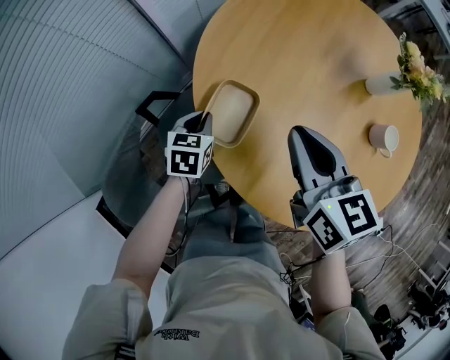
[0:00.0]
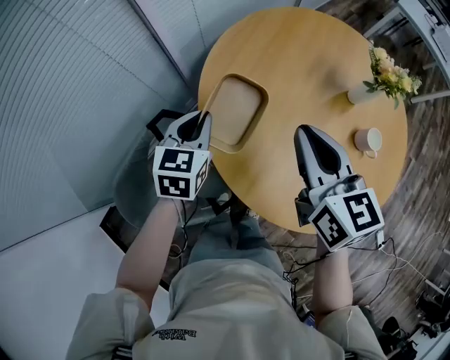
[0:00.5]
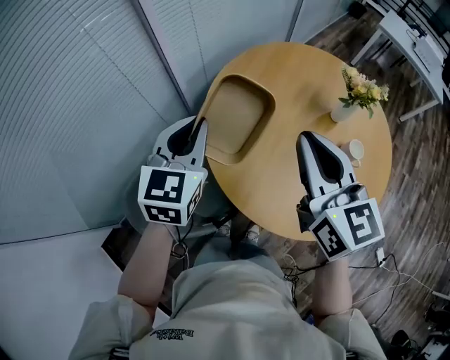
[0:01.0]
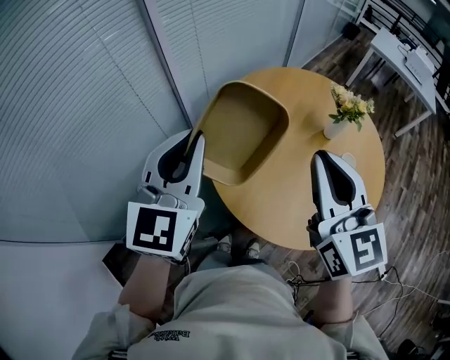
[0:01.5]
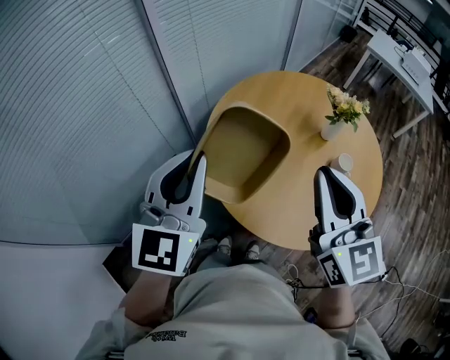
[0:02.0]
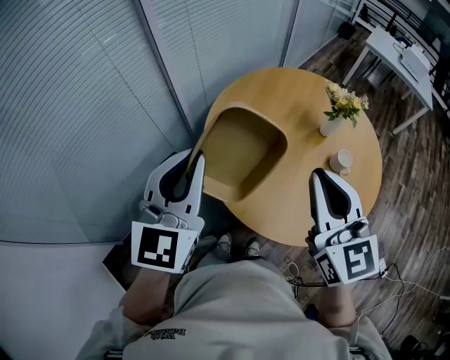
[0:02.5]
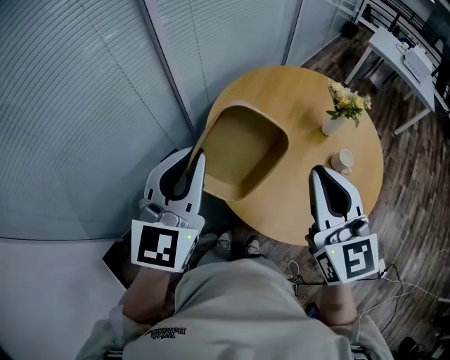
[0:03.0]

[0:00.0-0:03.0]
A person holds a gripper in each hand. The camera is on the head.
0:00.0 to 0:01.5: The right gripper heads upward and backward, covering approximately 30 cm, and rotates approximately 30 degrees. Meanwhile the left gripper travels upward by some 50 cm, and angles its fingers upward, by about 50 degrees.
0:01.5 to 0:03.0: The grippers make only small movements.

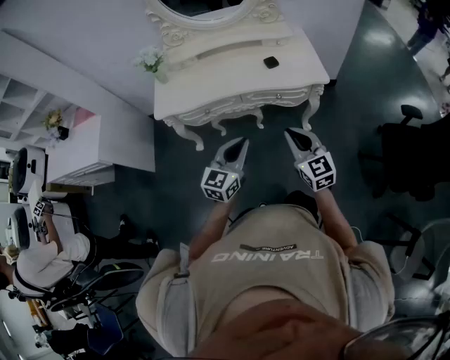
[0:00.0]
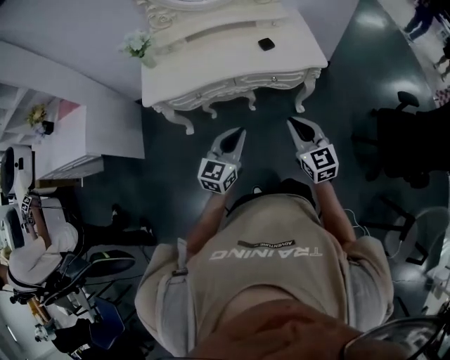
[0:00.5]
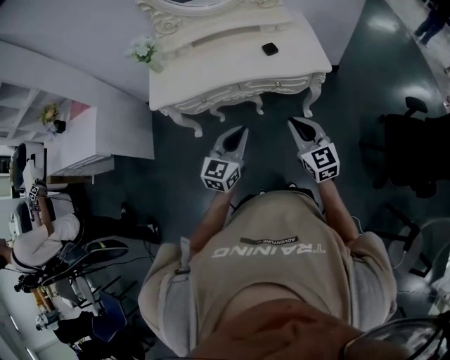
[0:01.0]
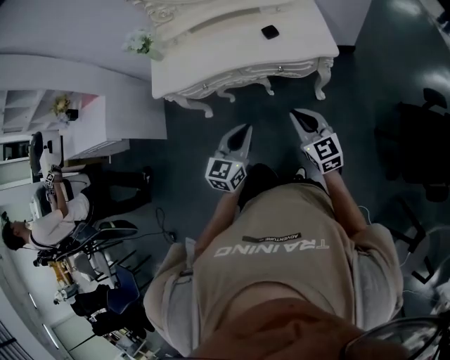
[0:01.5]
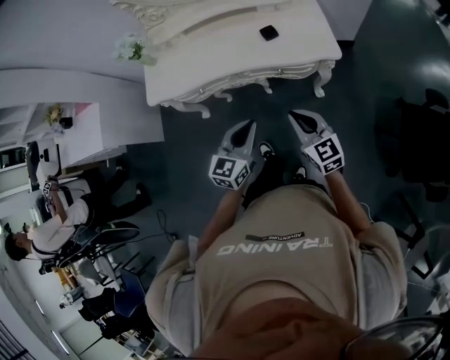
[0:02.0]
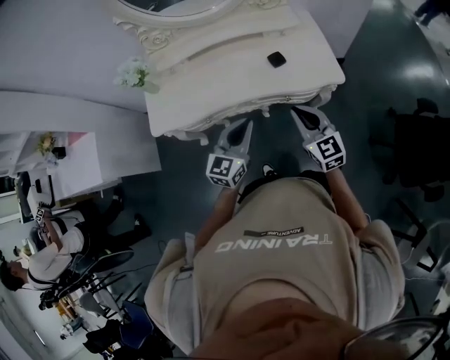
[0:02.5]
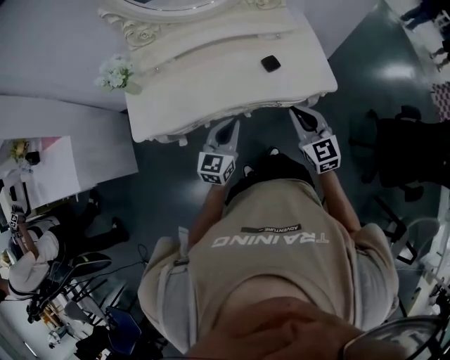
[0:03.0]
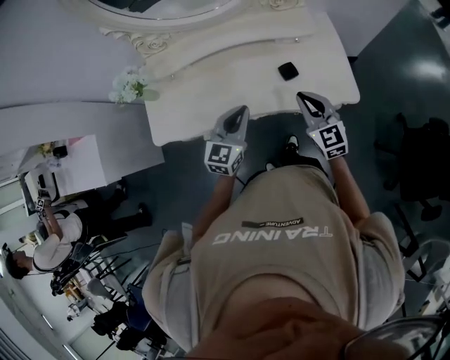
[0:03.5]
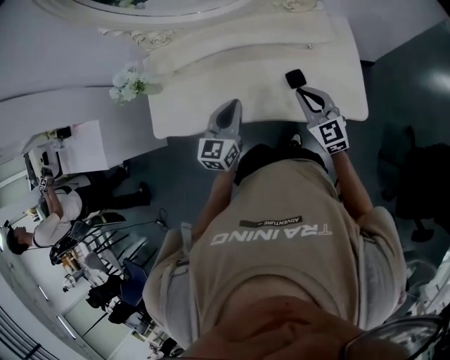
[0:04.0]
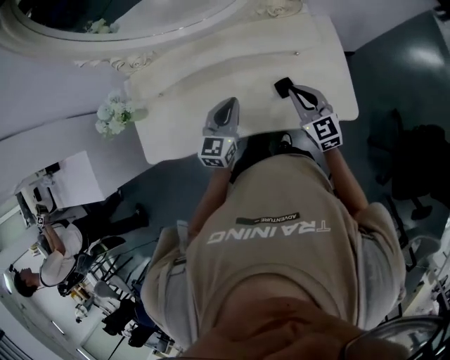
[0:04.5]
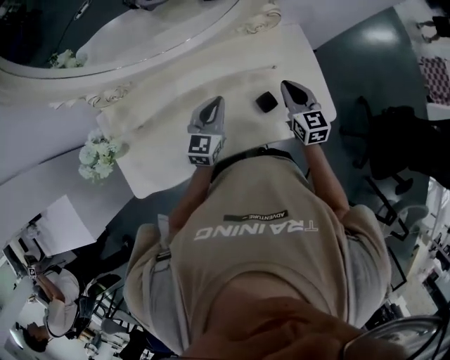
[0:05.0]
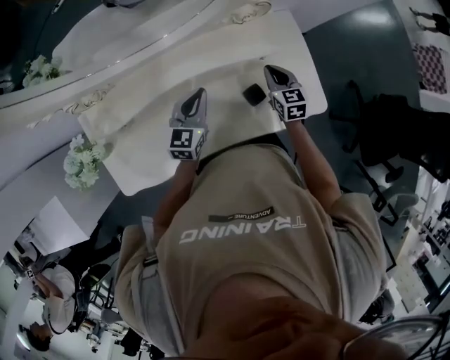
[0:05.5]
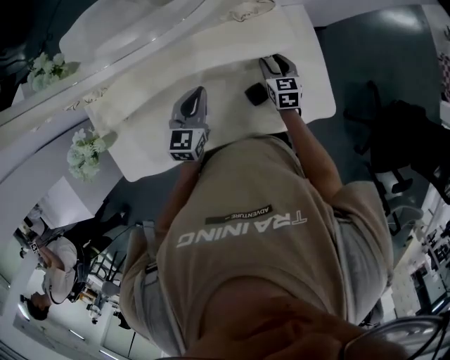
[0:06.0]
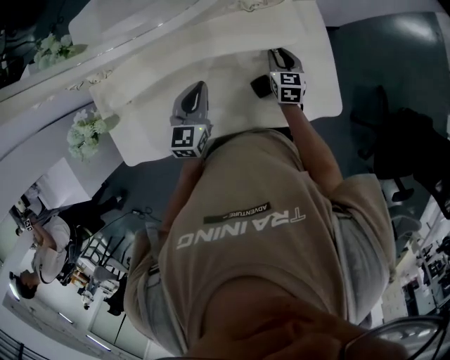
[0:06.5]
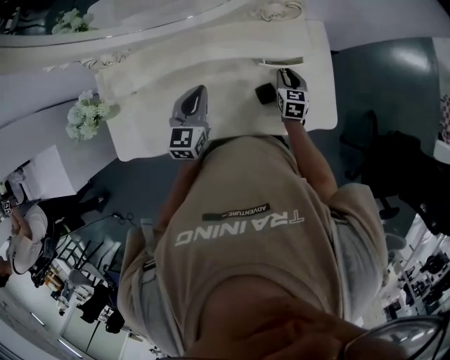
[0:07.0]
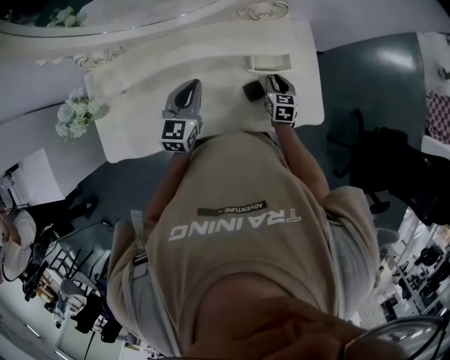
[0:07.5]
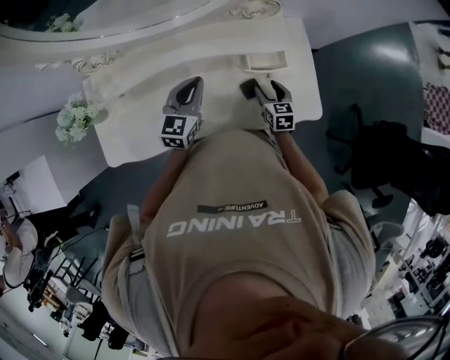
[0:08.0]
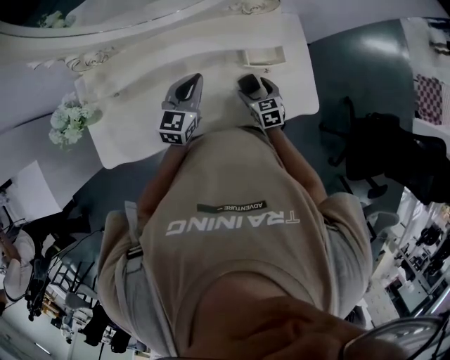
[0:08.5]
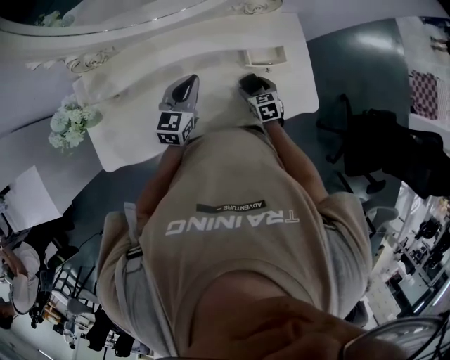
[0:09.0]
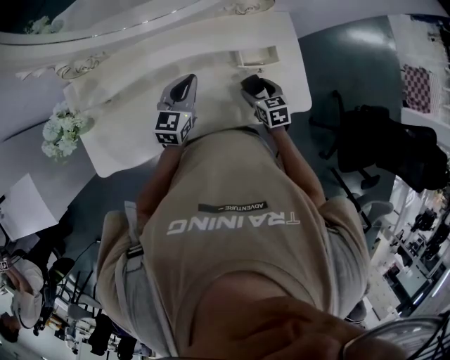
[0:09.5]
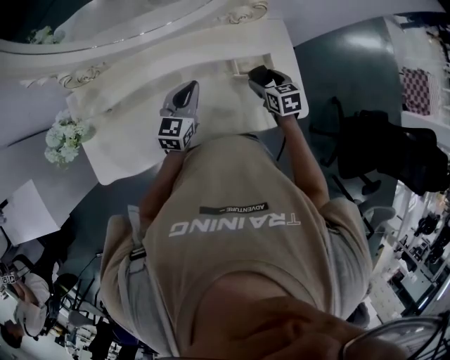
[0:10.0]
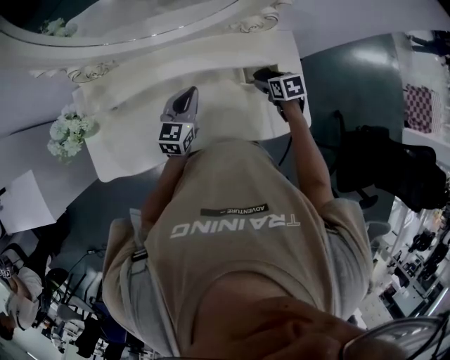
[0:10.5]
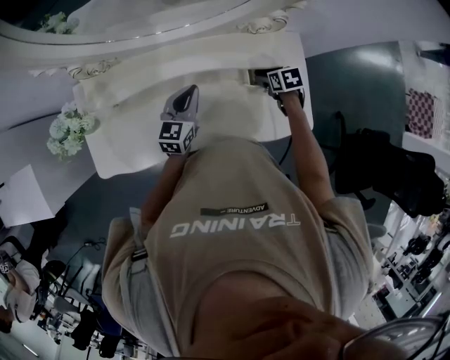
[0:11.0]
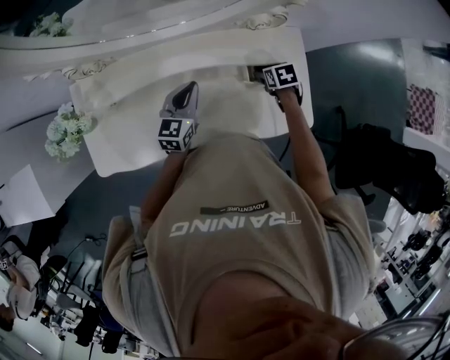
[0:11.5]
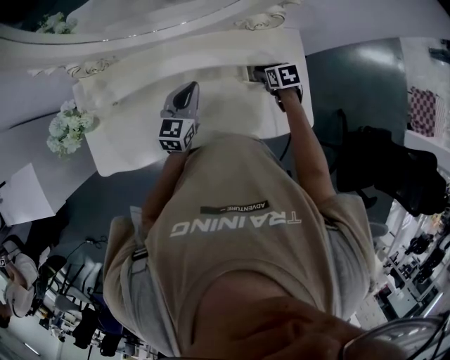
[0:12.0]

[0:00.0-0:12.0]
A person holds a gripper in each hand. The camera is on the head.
0:00.0 to 0:02.0: The right gripper goes roughly 15 cm forward, to the right and downward; the left gripper is displaced forward and to the right by approximately 15 cm.
0:02.0 to 0:04.0: Both grippers travel together forward, some 40 cm.
0:04.0 to 0:06.0: The grippers both shift forward and downward by approximately 25 cm. The right gripper changes its angle by roughly 40 degrees, and opens.
0:06.0 to 0:08.0: The left gripper goes about 5 cm upward and backward, while the right gripper shifts roughly 15 cm backward.
0:08.0 to 0:10.0: The right gripper heads upward, covering about 5 cm.
0:10.0 to 0:12.0: The right gripper heads forward and downward, covering some 10 cm.

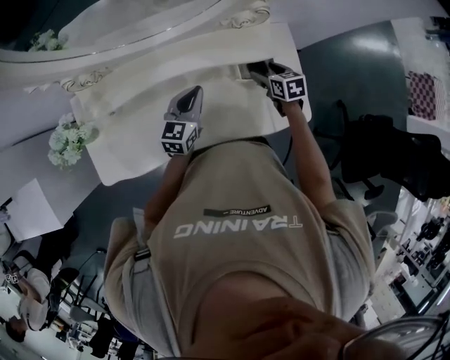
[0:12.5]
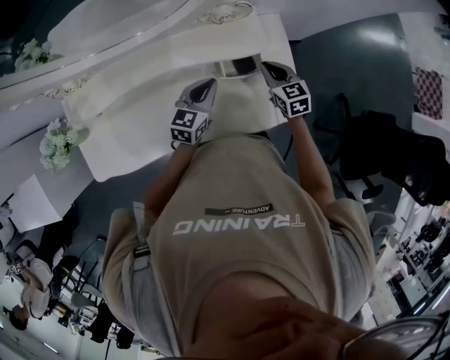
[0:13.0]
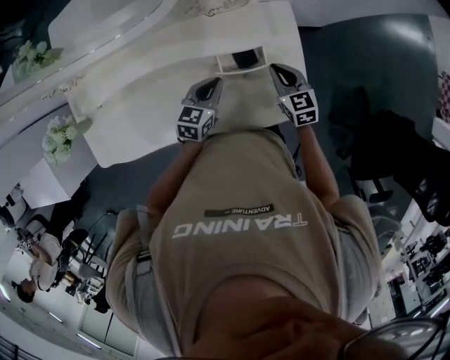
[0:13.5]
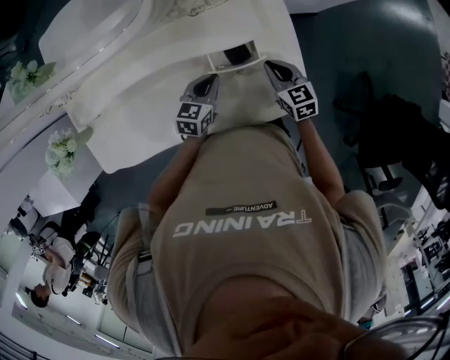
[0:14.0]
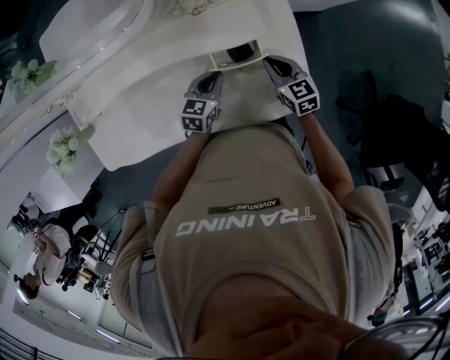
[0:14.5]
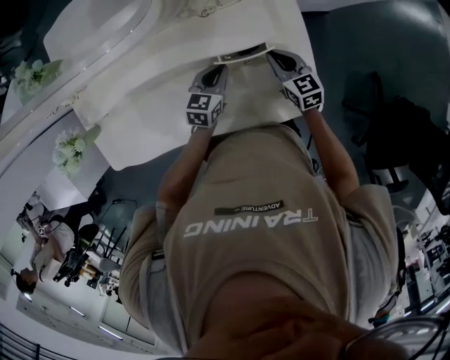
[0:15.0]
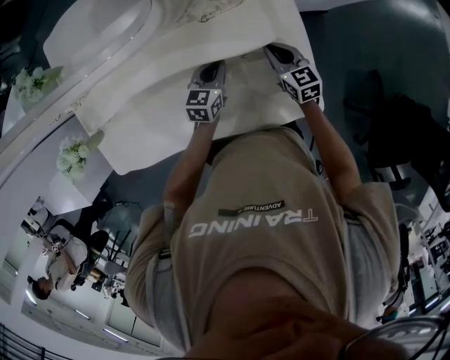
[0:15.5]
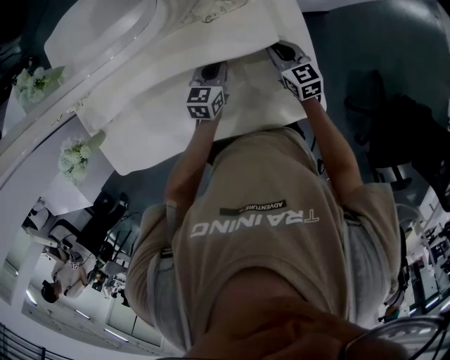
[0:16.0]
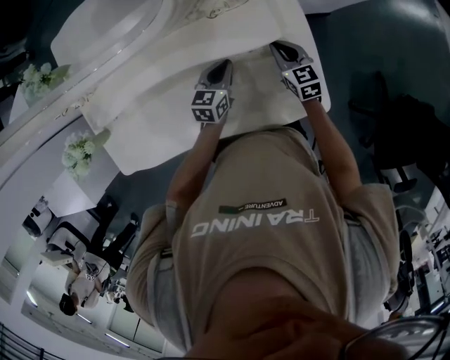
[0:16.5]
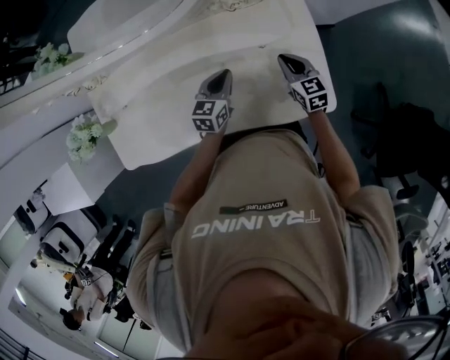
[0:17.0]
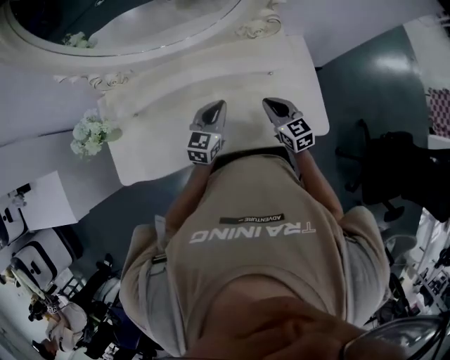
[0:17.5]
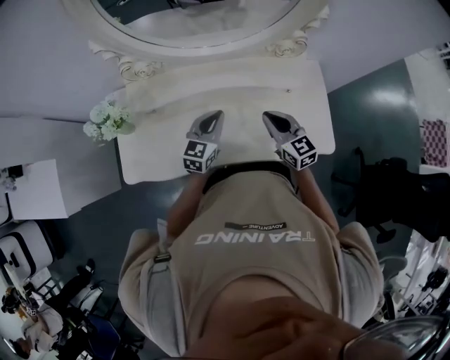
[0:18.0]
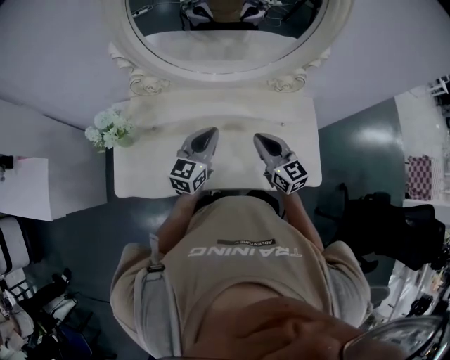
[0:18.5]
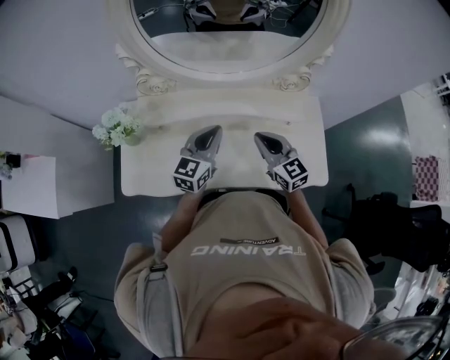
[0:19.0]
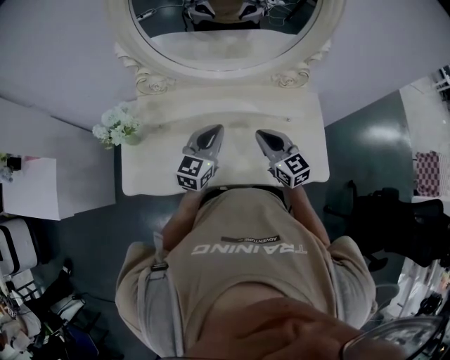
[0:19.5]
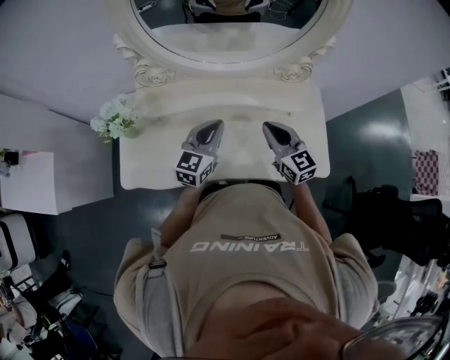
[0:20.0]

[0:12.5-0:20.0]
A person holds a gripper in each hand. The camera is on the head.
0:12.5 to 0:14.5: The right gripper travels to the right by roughly 10 cm, and closes. Meanwhile the left gripper heads to the right and downward, covering roughly 20 cm, and turns by some 20 degrees.
0:14.5 to 0:16.5: Both grippers travel together forward, some 5 cm.
0:16.5 to 0:18.0: The grippers both shift to the left, upward and backward by some 35 cm. The left gripper turns by some 20 degrees.
0:18.0 to 0:20.0: Both grippers move upward, some 5 cm.

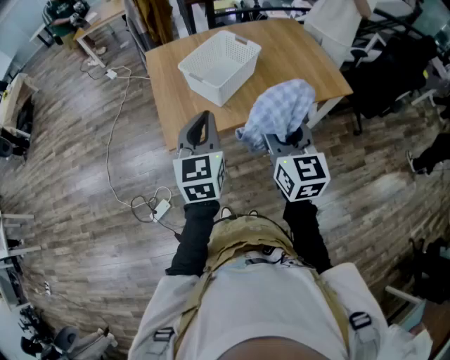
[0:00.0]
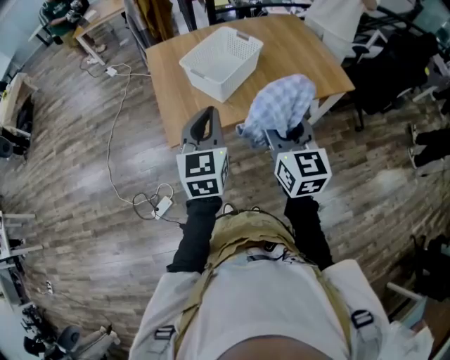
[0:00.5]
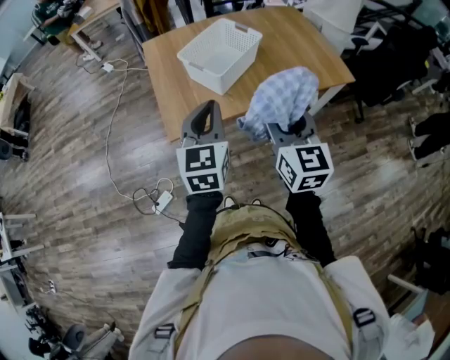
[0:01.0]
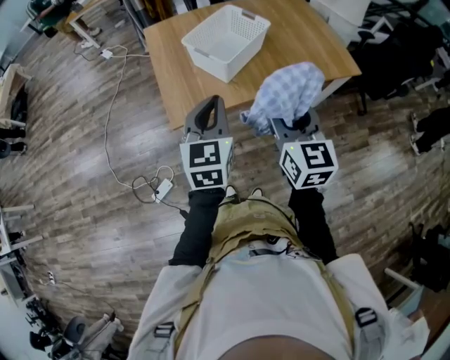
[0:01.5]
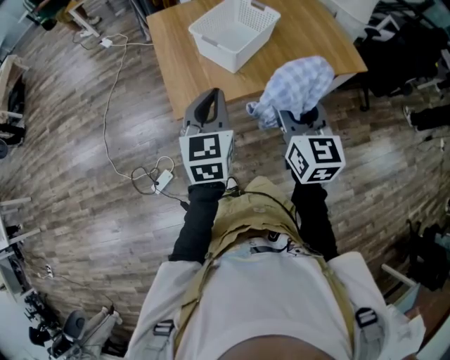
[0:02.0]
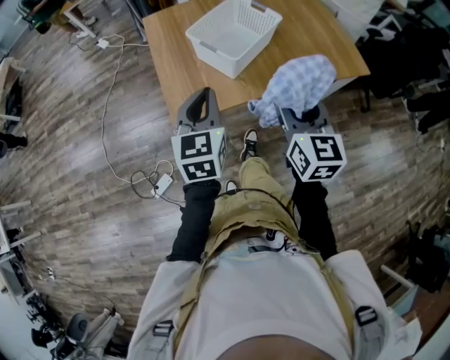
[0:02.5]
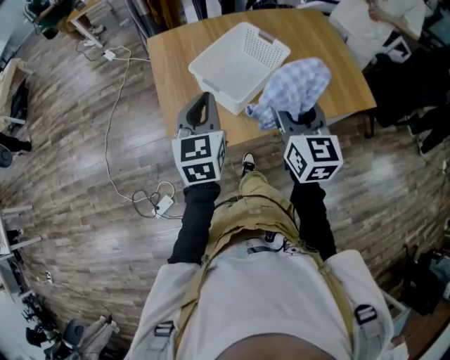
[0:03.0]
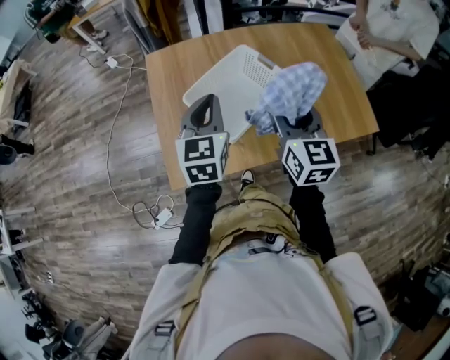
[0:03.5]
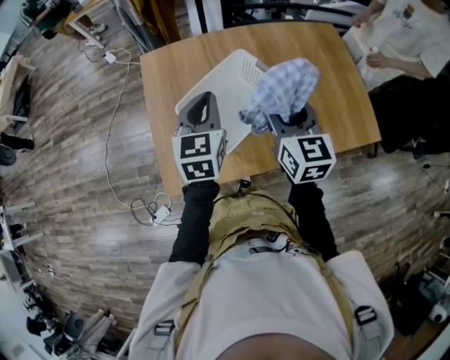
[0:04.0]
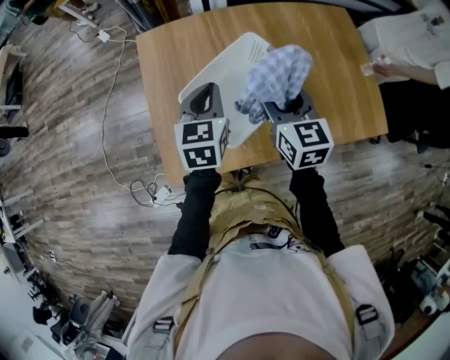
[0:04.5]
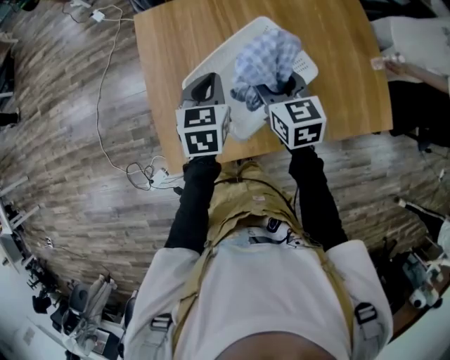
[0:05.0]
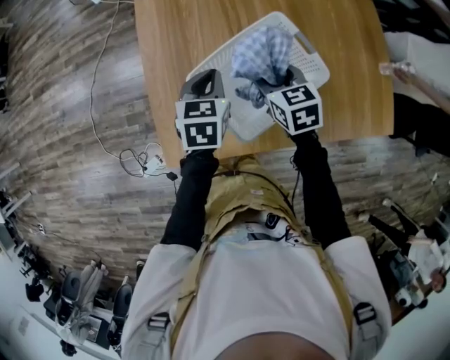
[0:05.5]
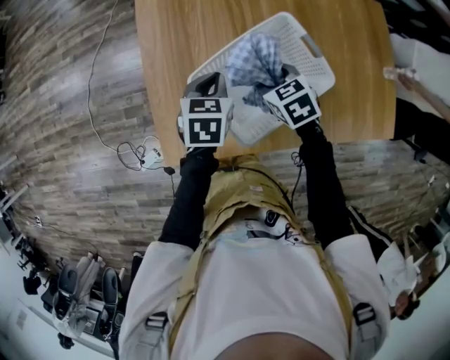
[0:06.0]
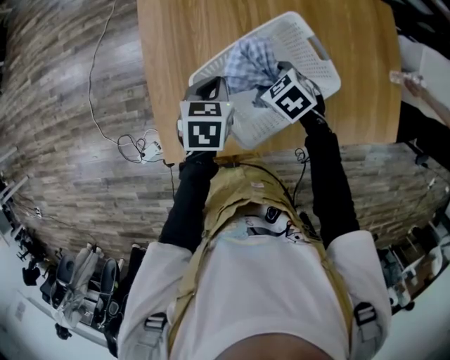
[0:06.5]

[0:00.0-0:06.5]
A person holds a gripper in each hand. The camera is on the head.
0:00.0 to 0:02.0: The left gripper shifts by approximately 5 cm; the right gripper moves about 5 cm.
0:02.0 to 0:04.5: The two grippers go some 40 cm forward.
0:04.5 to 0:06.5: The left gripper goes some 15 cm downward, and swivels approximately 30 degrees. The right gripper shifts approximately 25 cm downward, and points its fingers some 50 degrees further downward.
